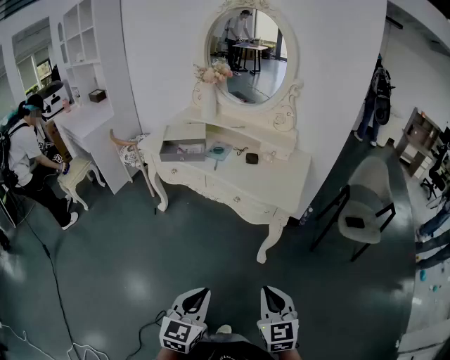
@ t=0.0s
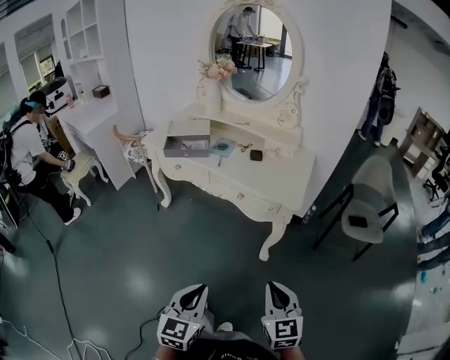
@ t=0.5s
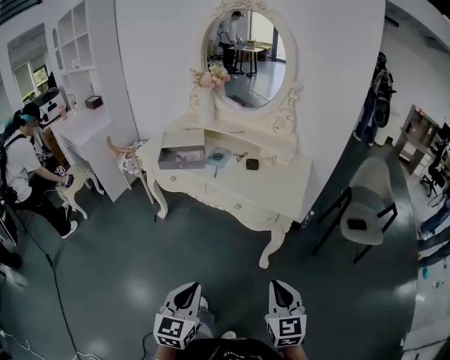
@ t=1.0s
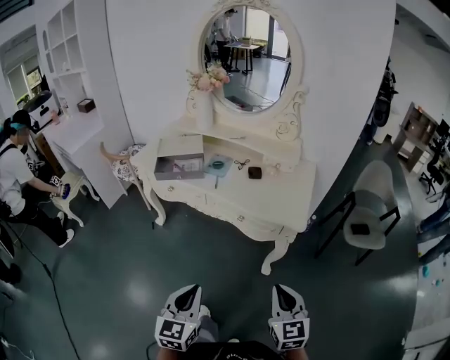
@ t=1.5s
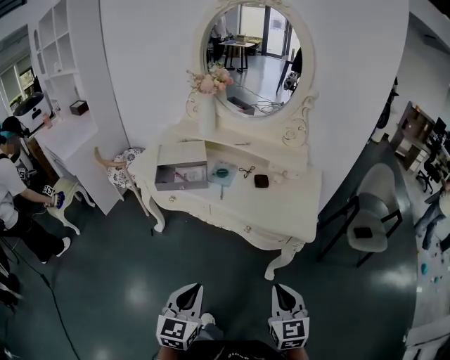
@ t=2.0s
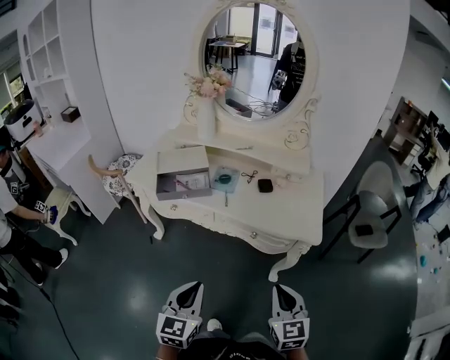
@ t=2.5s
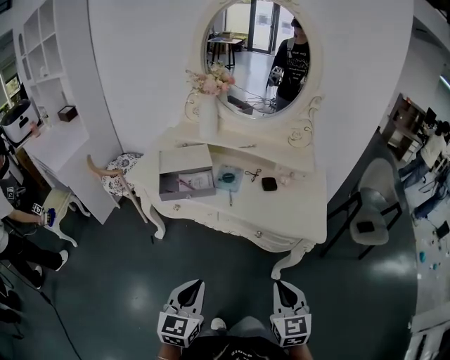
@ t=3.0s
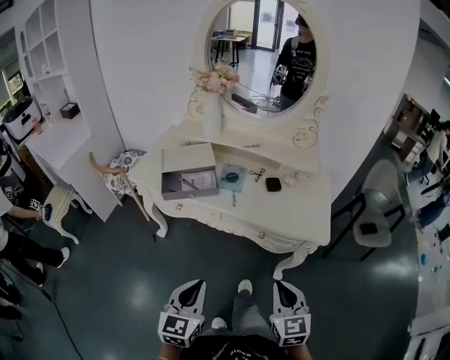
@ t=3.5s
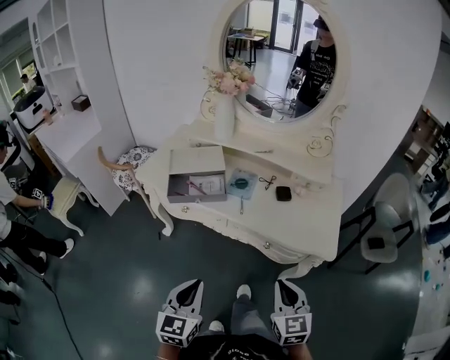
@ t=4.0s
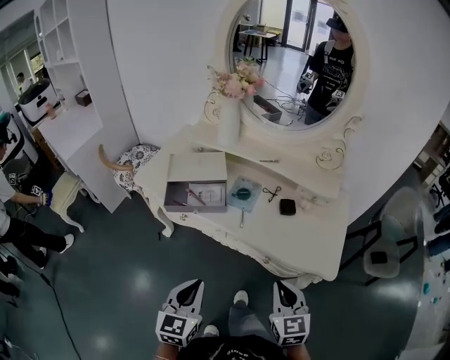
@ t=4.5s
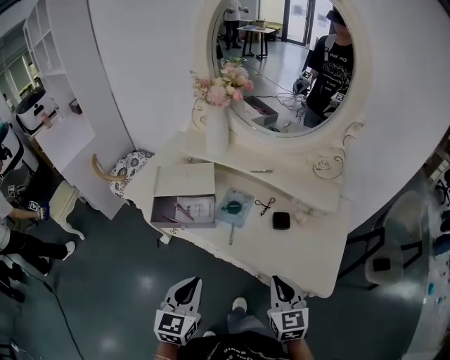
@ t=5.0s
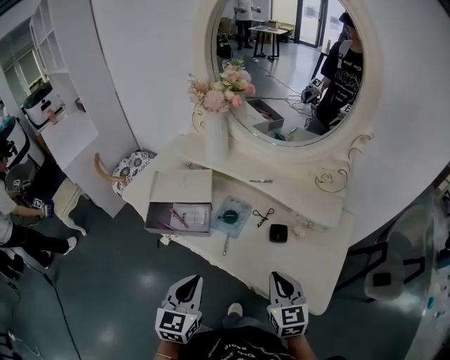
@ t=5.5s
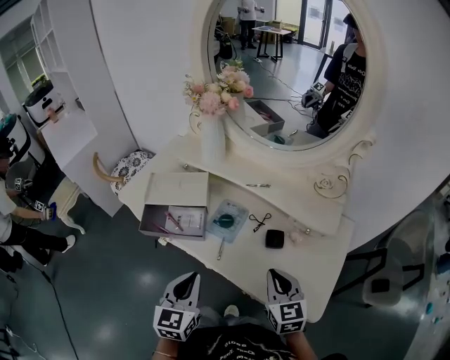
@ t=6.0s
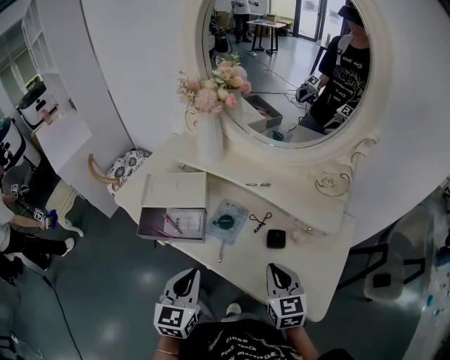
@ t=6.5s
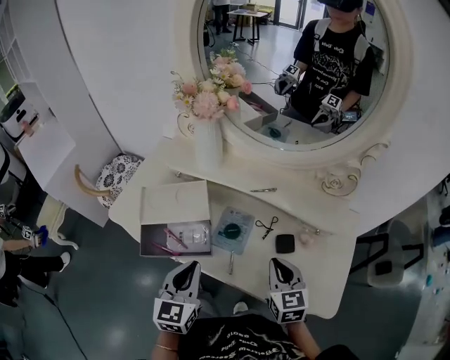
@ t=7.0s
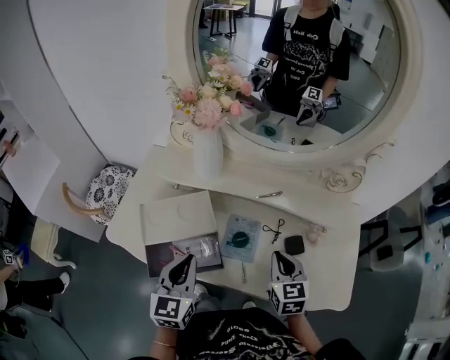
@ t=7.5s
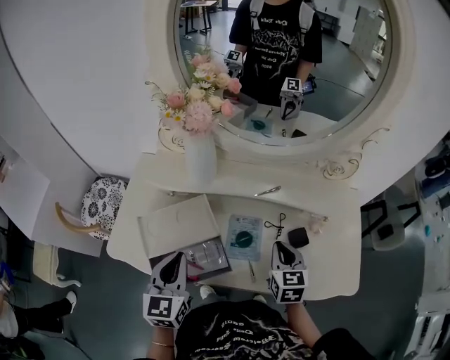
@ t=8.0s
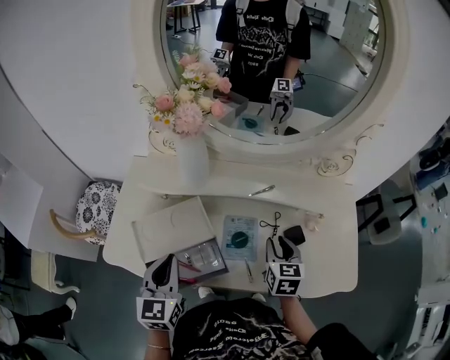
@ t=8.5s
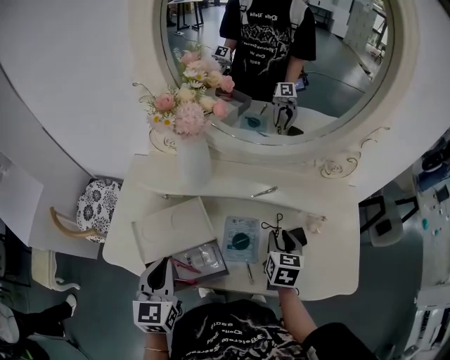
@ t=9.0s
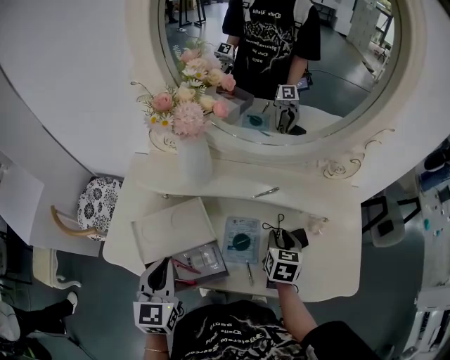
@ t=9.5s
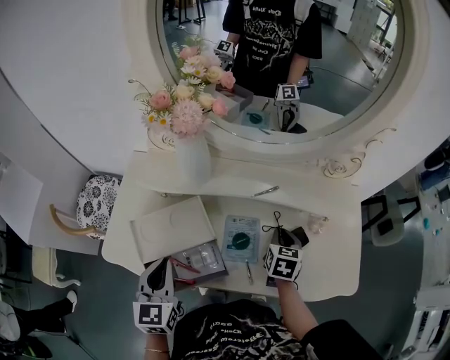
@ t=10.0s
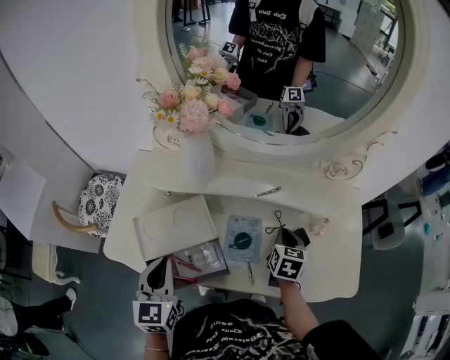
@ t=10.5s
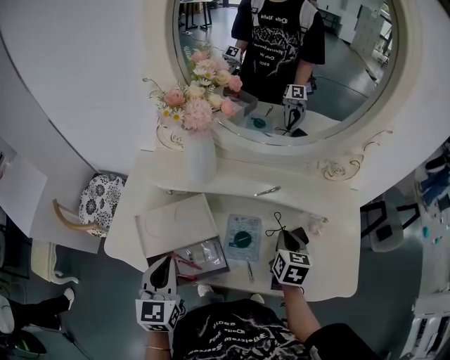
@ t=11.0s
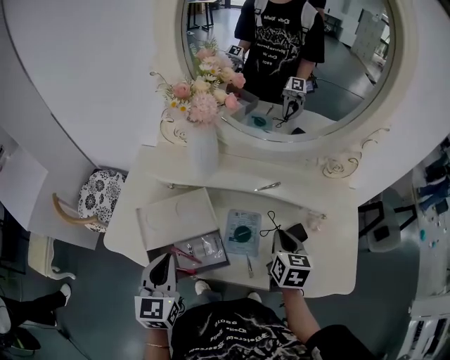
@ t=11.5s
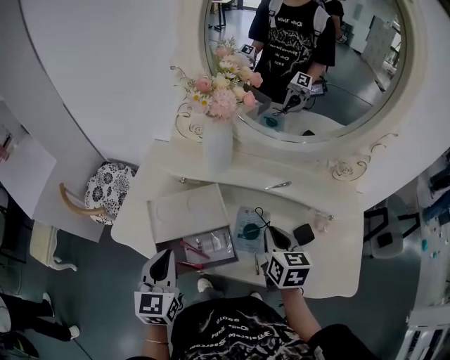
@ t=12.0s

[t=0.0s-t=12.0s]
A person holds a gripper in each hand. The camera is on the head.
t=0.0s to t=2.0s: The right gripper is displaced forward by roughly 15 cm. The left gripper goes roughly 20 cm forward and to the left.
t=2.0s to t=4.0s: Both grippers move forward and to the left, some 10 cm.
t=4.0s to t=6.0s: The right gripper travels forward by about 25 cm. Meanwhile the left gripper shifts some 20 cm forward and to the right.
t=6.0s to t=8.0s: The left gripper travels forward and to the left by some 25 cm, while the right gripper shifts some 15 cm forward and to the left, and rotates approximately 30 degrees.
t=8.0s to t=10.0s: The right gripper heads forward, covering about 5 cm, and opens, then closes once more.
t=10.0s to t=12.0s: The right gripper heads to the left and upward, covering some 10 cm, and swivels about 20 degrees.

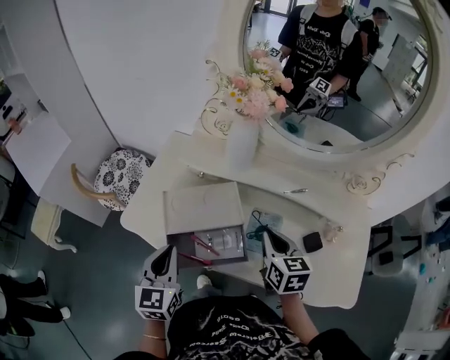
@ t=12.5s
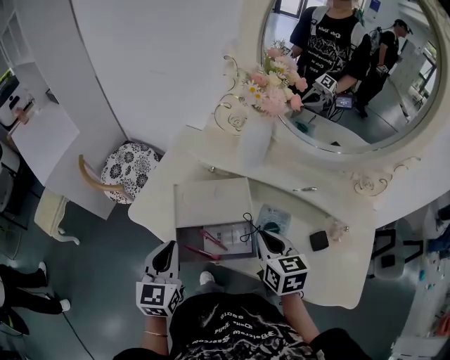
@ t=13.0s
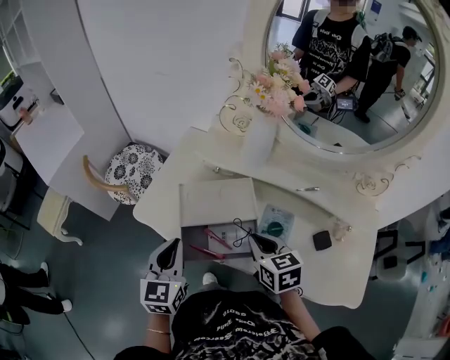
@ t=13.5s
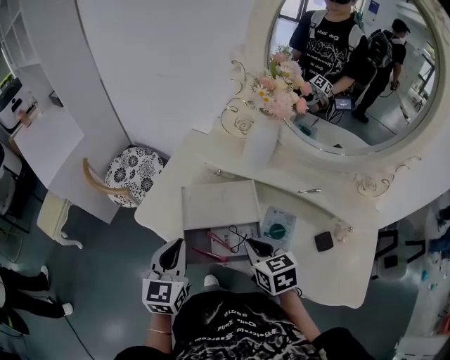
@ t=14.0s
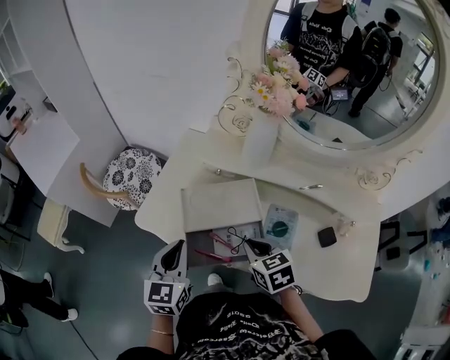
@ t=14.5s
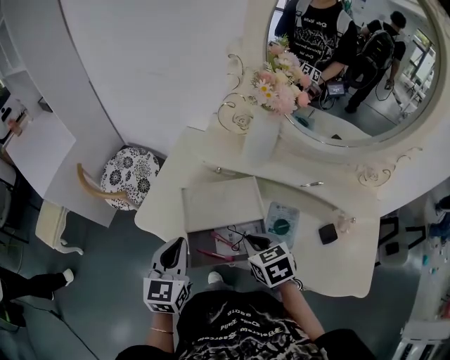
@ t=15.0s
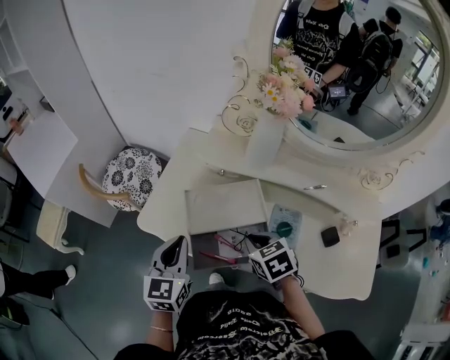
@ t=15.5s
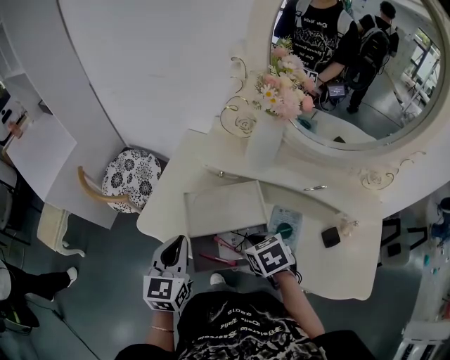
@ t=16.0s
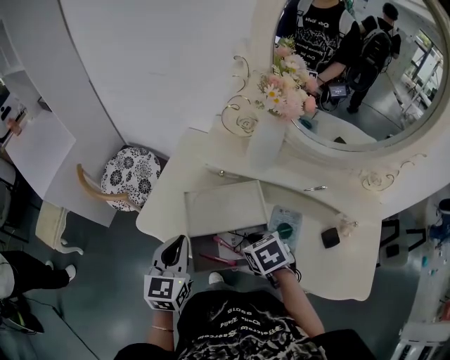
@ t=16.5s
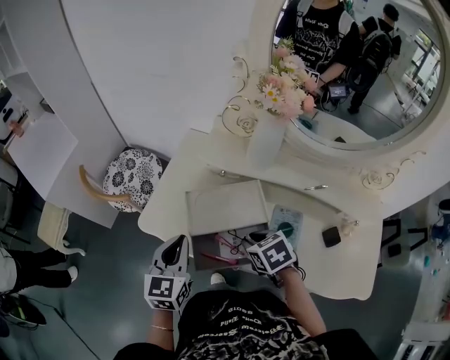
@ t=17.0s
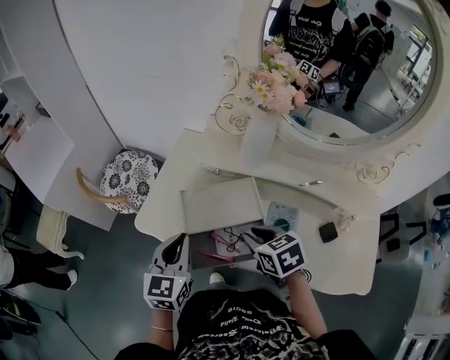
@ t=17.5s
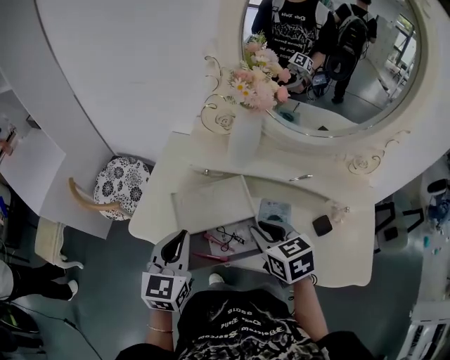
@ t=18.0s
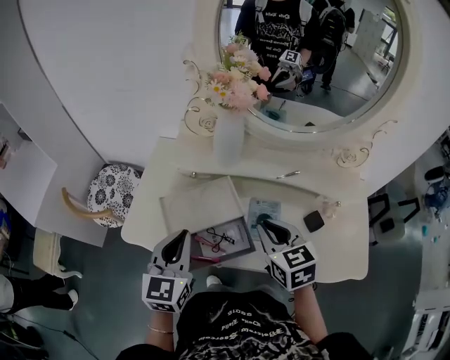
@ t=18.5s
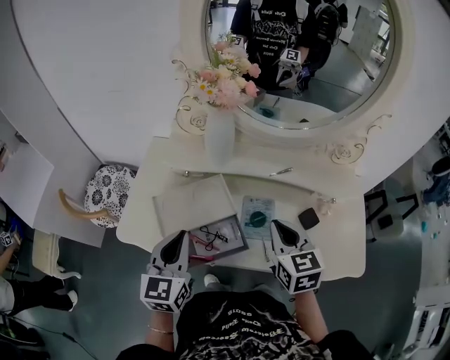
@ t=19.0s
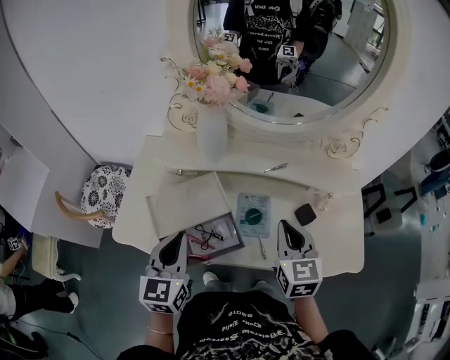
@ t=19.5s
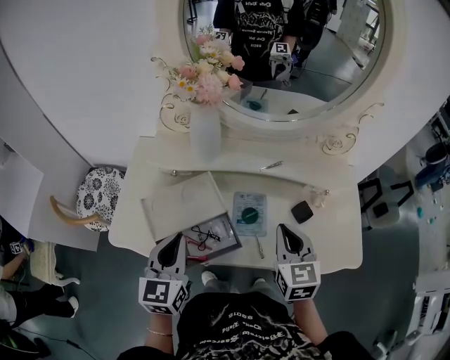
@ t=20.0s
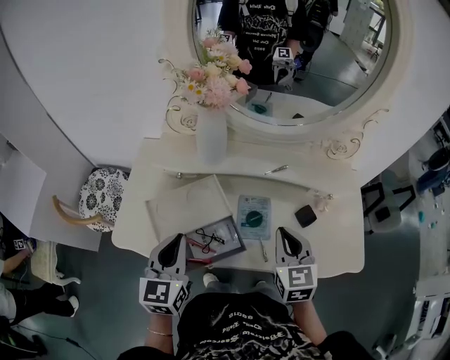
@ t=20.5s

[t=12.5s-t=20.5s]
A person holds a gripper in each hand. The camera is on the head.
t=12.5s to t=14.5s: The right gripper goes some 10 cm to the left, and rotates some 30 degrees.
t=14.5s to t=16.5s: The grippers make only small movements.
t=16.5s to t=18.5s: The left gripper heads to the right and upward, covering roughly 10 cm. Meanwhile the right gripper is displaced upward and to the right by roughly 15 cm, and tilts its fingers some 30 degrees upward.
t=18.5s to t=20.5s: The right gripper is displaced to the right by roughly 10 cm, and swivels roughly 20 degrees.

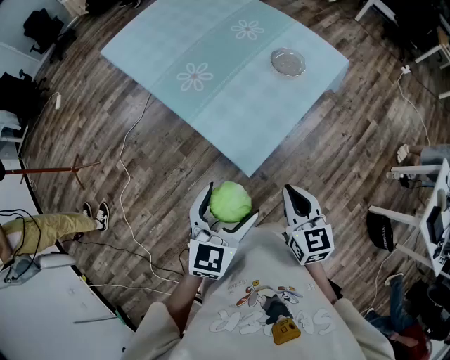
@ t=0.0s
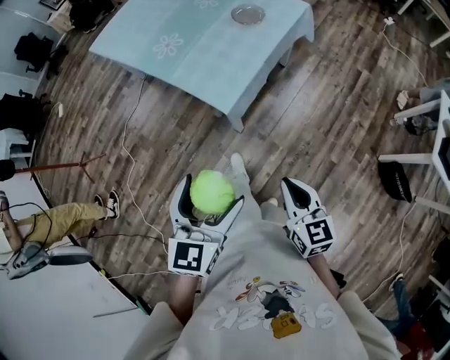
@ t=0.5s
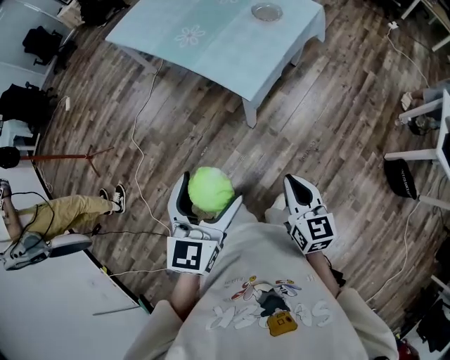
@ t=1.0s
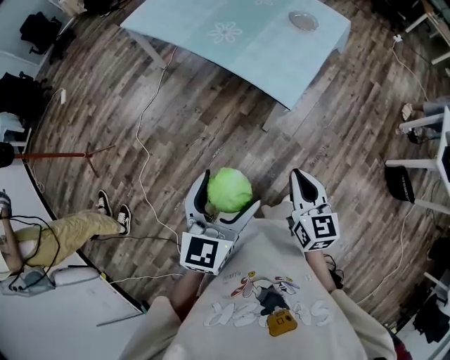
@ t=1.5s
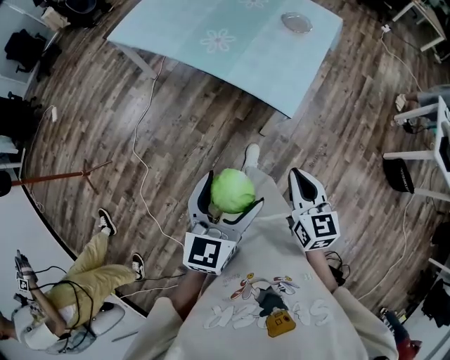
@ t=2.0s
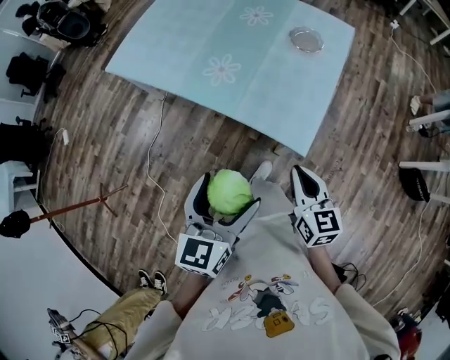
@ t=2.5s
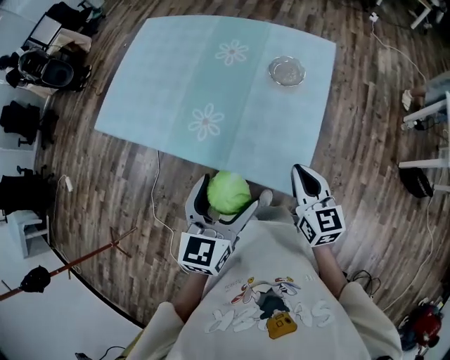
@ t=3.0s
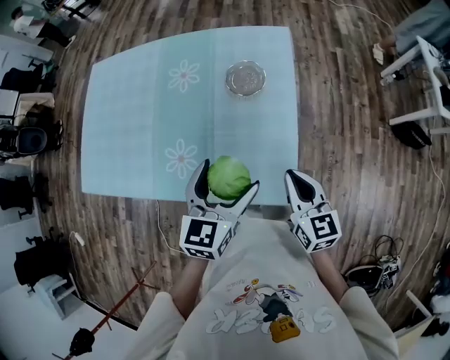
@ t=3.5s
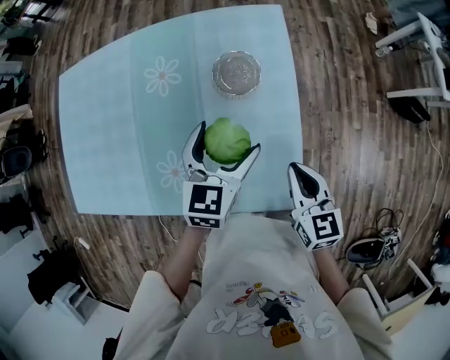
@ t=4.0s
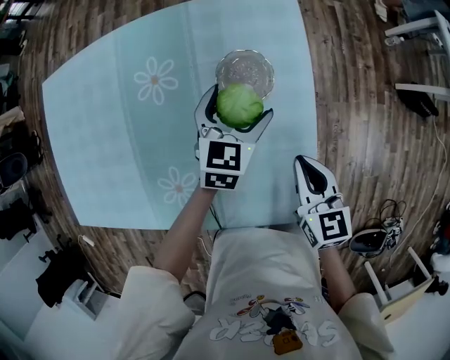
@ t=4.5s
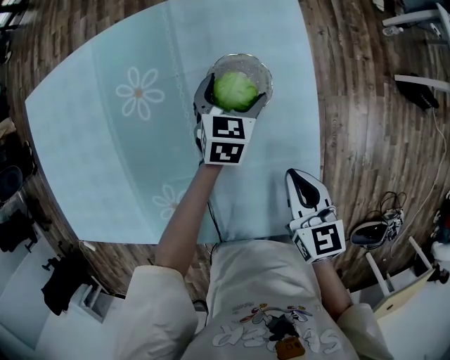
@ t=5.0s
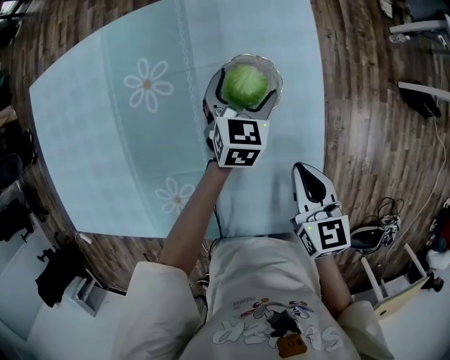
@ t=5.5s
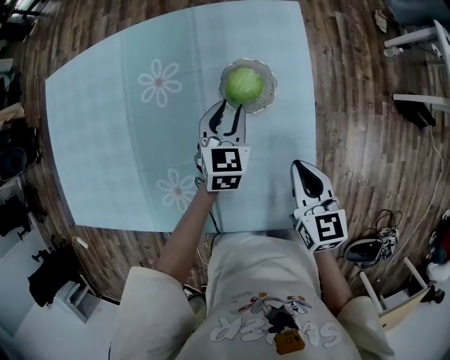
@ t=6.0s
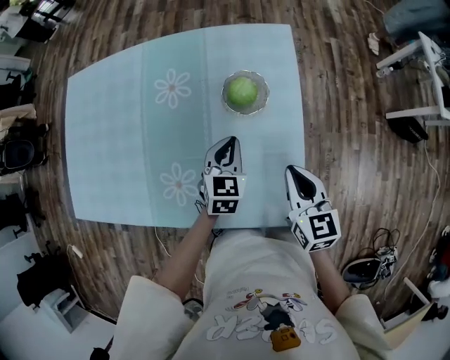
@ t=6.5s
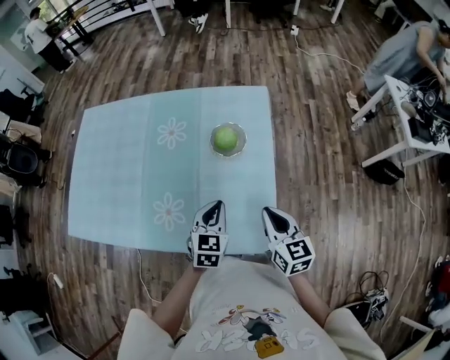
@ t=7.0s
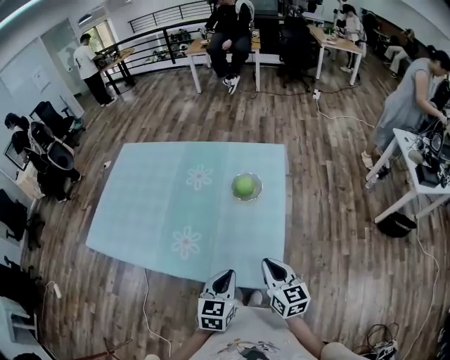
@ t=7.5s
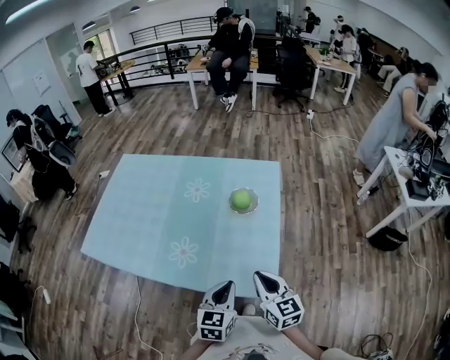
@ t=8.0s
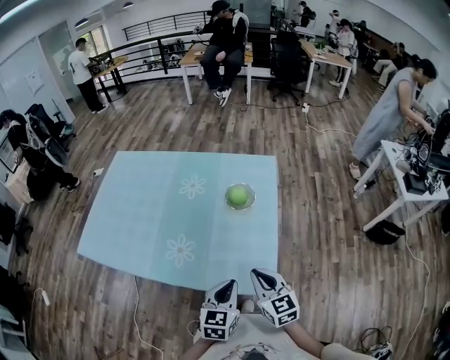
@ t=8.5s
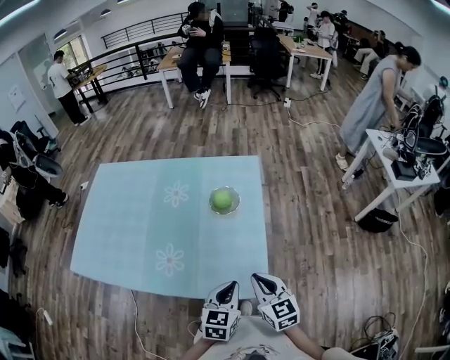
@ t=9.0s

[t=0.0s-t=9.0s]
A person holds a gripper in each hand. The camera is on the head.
t=0.0s to t=2.0s: The right gripper goes approximately 30 cm backward and to the left; the left gripper goes approximately 30 cm to the left and backward.
t=2.0s to t=4.5s: The pair of grippers is taken roughly 70 cm. The left gripper changes its angle by approximately 40 degrees, while the right gripper swivels roughly 30 degrees.
t=4.5s to t=7.0s: The right gripper goes approximately 15 cm backward and upward; the left gripper goes roughly 25 cm backward, and closes.
t=7.0s to t=9.0s: The left gripper moves backward and upward, about 15 cm, while the right gripper travels backward by approximately 10 cm.
